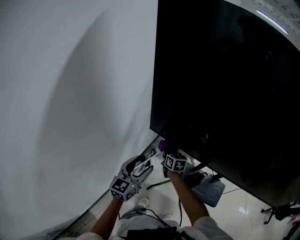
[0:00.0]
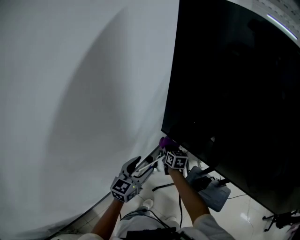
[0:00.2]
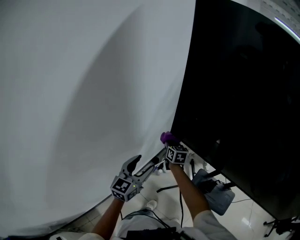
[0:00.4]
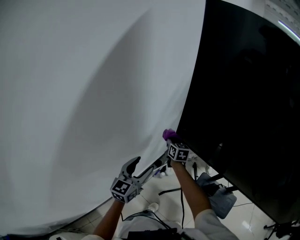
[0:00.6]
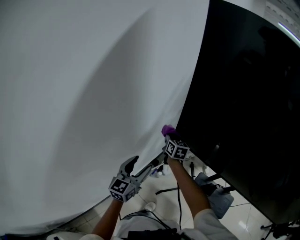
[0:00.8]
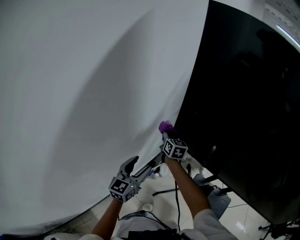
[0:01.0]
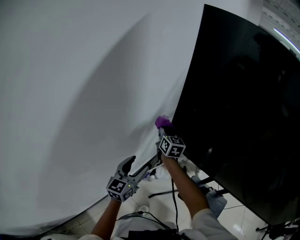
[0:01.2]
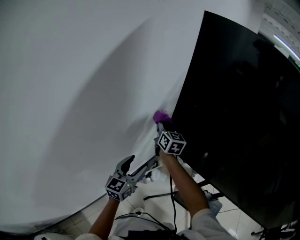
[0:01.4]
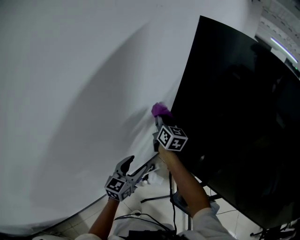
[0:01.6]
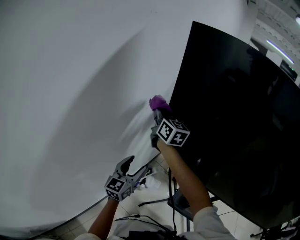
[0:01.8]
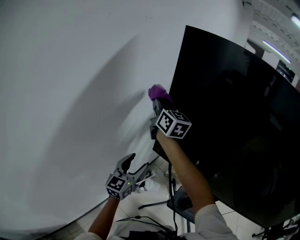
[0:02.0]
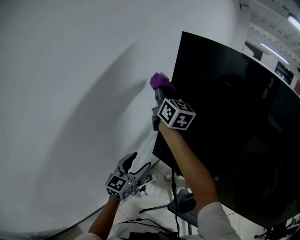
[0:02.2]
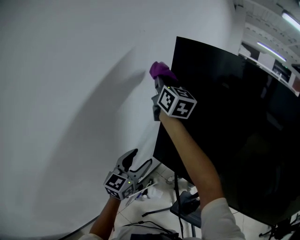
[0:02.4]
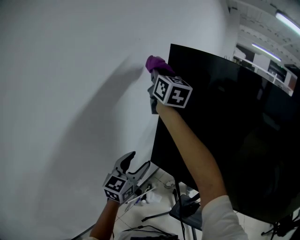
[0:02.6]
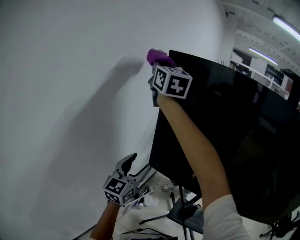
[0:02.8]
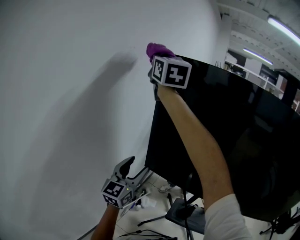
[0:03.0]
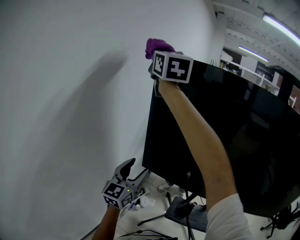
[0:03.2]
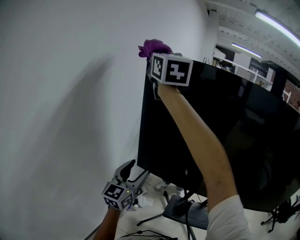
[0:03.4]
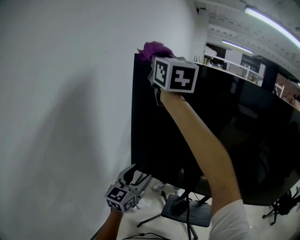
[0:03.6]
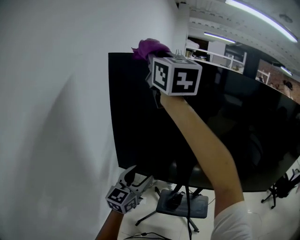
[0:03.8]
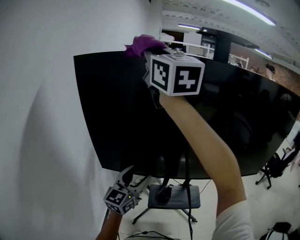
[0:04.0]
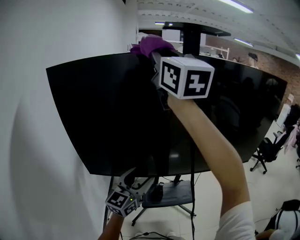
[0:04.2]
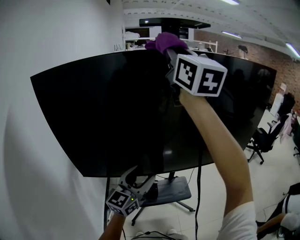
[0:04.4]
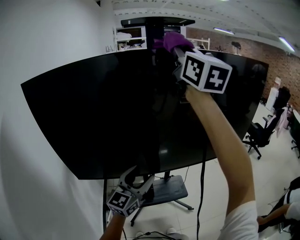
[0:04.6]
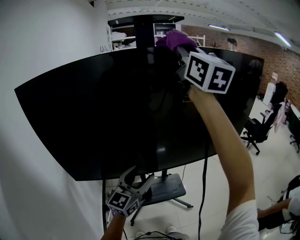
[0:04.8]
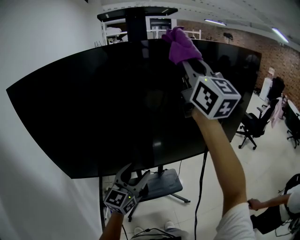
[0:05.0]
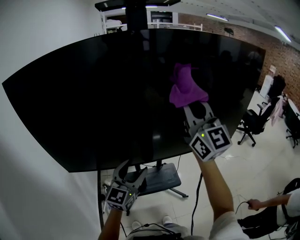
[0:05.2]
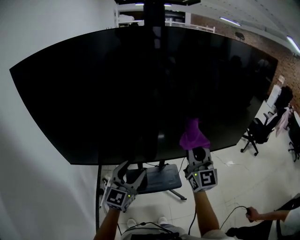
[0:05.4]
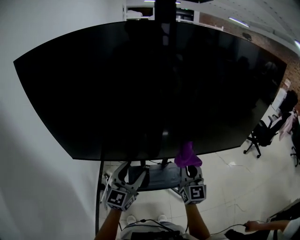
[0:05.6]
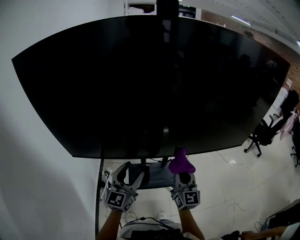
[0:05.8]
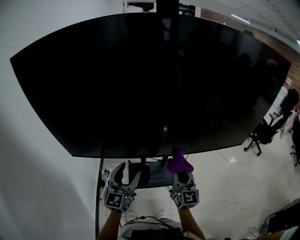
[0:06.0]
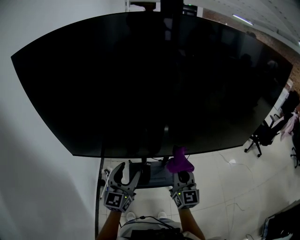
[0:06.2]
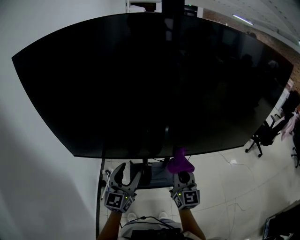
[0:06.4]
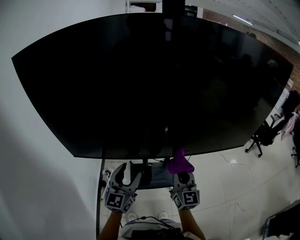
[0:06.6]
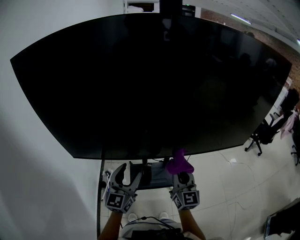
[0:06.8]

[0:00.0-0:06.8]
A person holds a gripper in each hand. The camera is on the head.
0:00.0 to 0:01.4: The left gripper moves to the left and forward, about 20 cm. The right gripper is displaced upward, to the left and forward by roughly 35 cm, and rotates about 20 degrees.
0:01.4 to 0:02.8: The left gripper heads upward, covering approximately 20 cm. Meanwhile the right gripper travels upward by roughly 50 cm, and changes its angle by approximately 30 degrees.
0:02.8 to 0:04.0: The right gripper moves to the right and backward, roughly 30 cm, and turns by about 20 degrees. The left gripper shifts some 20 cm to the right, and rotates approximately 30 degrees.
0:04.0 to 0:05.4: The left gripper heads to the right, covering about 30 cm. Meanwhile the right gripper is displaced to the right and downward by about 70 cm, and turns by roughly 30 degrees.
0:05.4 to 0:06.8: The left gripper heads to the left and downward, covering approximately 10 cm. The right gripper goes approximately 15 cm downward and to the left.

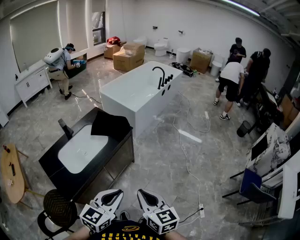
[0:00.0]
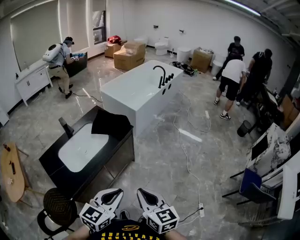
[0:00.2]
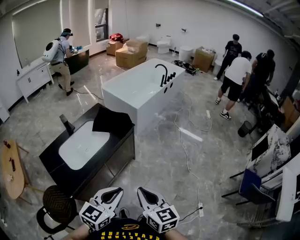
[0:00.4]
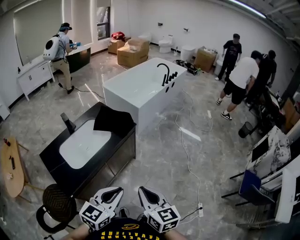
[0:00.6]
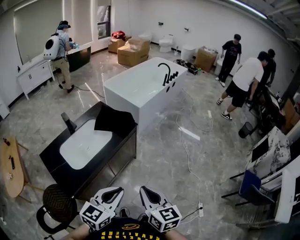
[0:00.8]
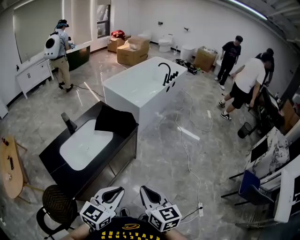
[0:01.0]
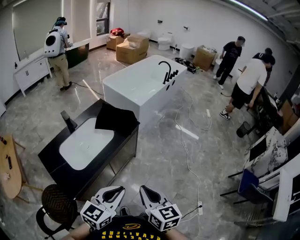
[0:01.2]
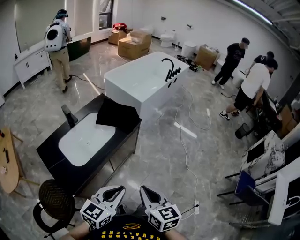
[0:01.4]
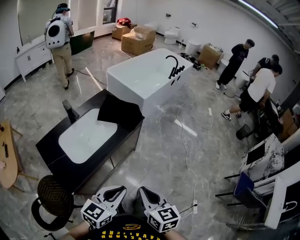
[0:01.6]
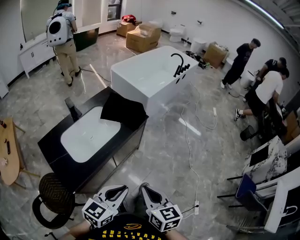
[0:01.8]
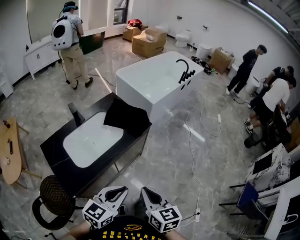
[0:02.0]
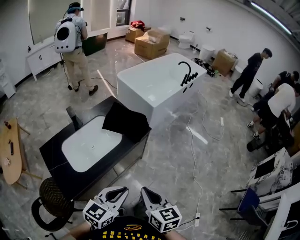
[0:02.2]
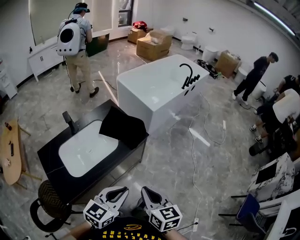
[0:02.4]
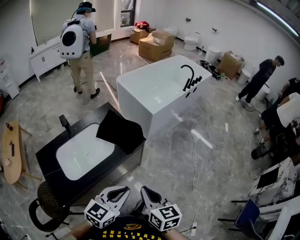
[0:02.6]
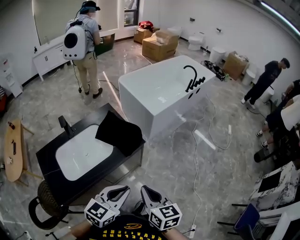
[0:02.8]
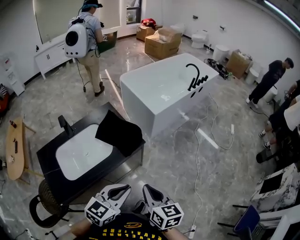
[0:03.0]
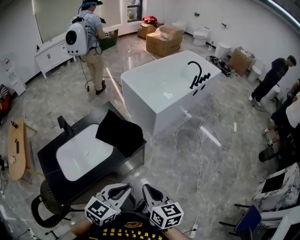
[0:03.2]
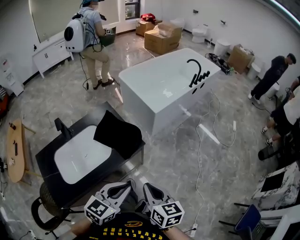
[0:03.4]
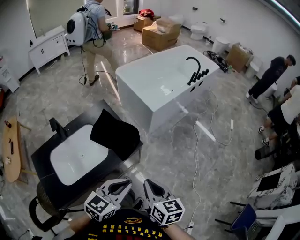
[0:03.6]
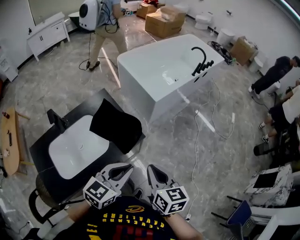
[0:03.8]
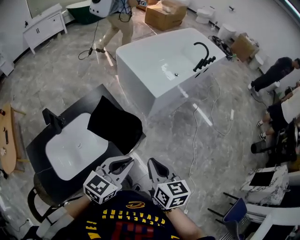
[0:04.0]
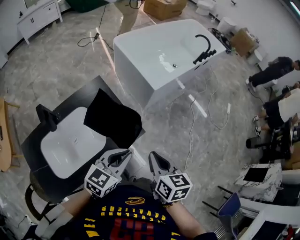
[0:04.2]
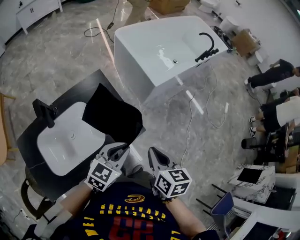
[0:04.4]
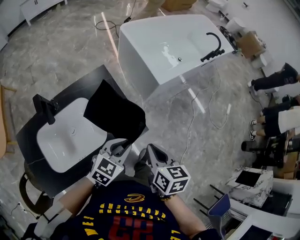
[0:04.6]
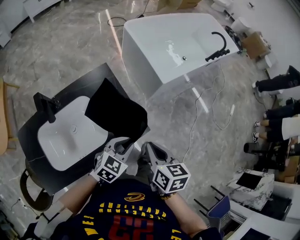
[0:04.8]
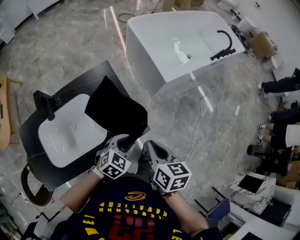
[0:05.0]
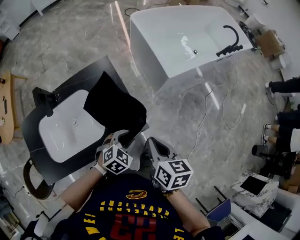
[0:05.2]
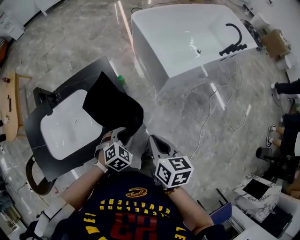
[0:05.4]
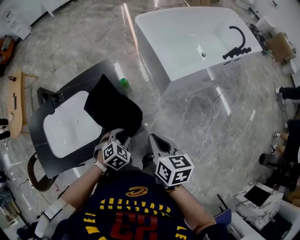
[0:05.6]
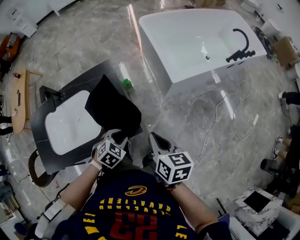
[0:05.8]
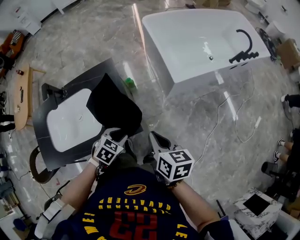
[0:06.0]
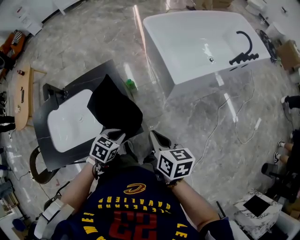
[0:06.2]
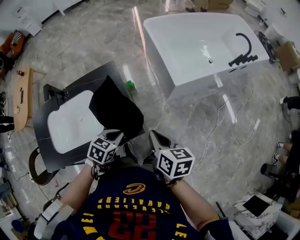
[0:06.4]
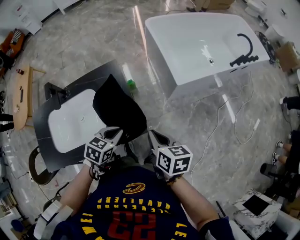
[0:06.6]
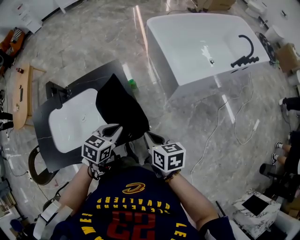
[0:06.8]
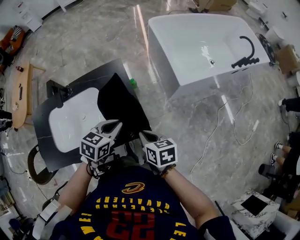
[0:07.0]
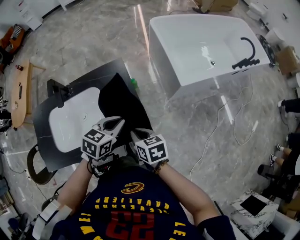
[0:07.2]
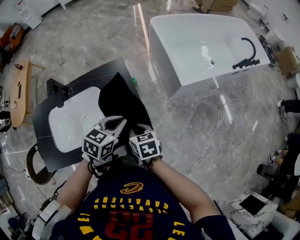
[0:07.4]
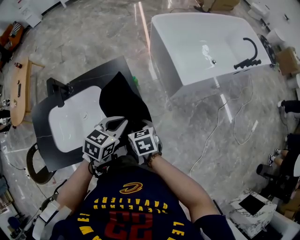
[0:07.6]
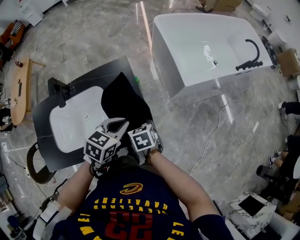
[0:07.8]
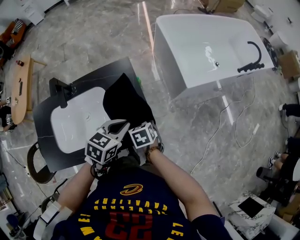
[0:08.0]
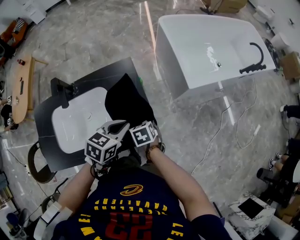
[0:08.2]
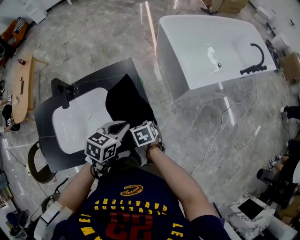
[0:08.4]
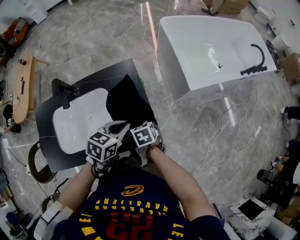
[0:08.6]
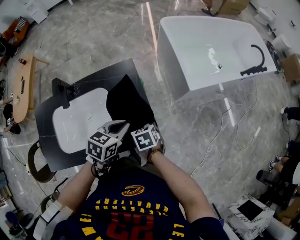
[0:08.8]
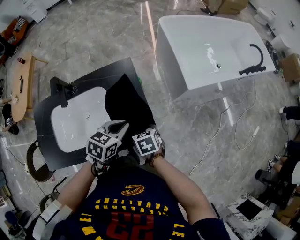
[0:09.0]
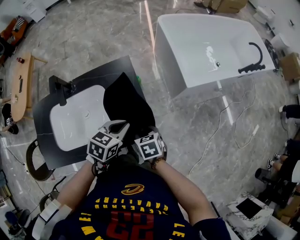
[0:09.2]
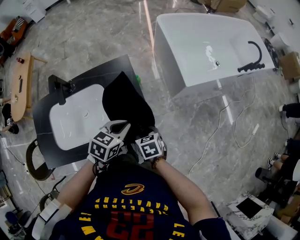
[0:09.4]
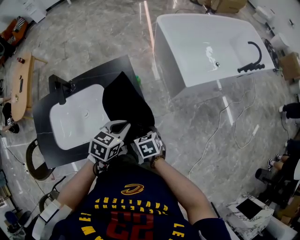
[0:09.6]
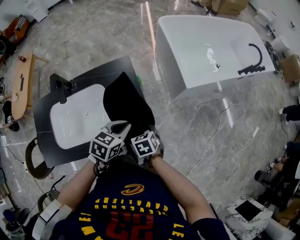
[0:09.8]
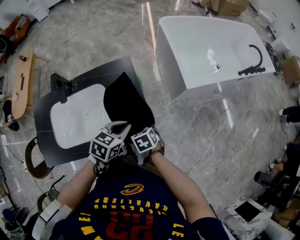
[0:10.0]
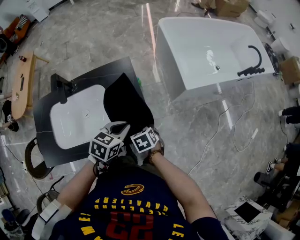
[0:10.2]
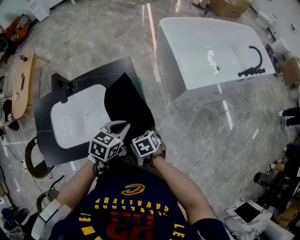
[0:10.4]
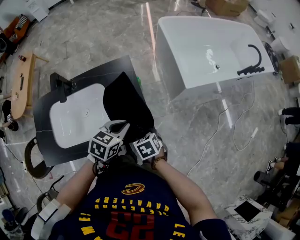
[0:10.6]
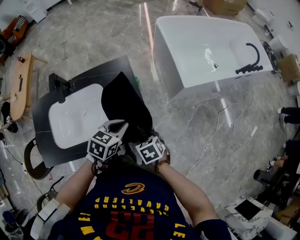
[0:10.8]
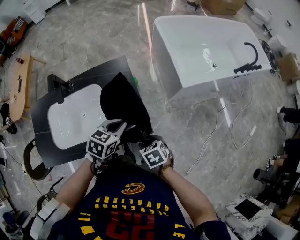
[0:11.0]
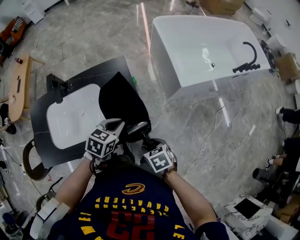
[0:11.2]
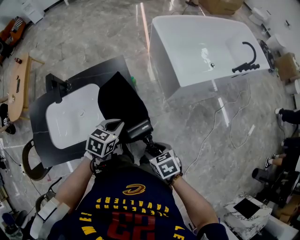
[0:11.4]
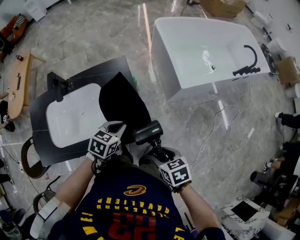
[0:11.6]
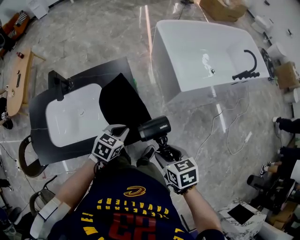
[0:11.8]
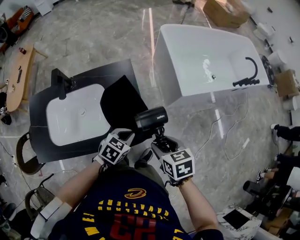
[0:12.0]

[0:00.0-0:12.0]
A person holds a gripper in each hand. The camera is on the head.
0:00.0 to 0:01.6: Both grippers move to the left, roughly 10 cm.
0:01.6 to 0:03.0: Both grippers move forward and to the right, approximately 25 cm.
0:03.0 to 0:04.4: Both grippers move forward, approximately 25 cm.
0:04.4 to 0:06.0: The right gripper moves forward and to the right, roughly 15 cm, and changes its angle by approximately 20 degrees, while the left gripper travels downward by approximately 15 cm, points its fingers approximately 30 degrees further downward, and opens its fingers.
0:06.0 to 0:07.6: The right gripper is displaced to the left and downward by about 20 cm, changes its angle by roughly 30 degrees, and opens. Meanwhile the left gripper moves upward, forward and to the left, some 15 cm, turns by some 20 degrees, and closes.
0:09.0 to 0:10.4: The grippers stay close to where they were, moving slightly.
0:10.4 to 0:12.0: The left gripper moves roughly 5 cm; the right gripper heads upward and to the right, covering some 20 cm.

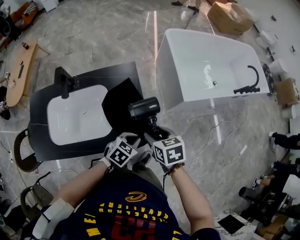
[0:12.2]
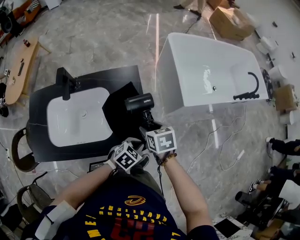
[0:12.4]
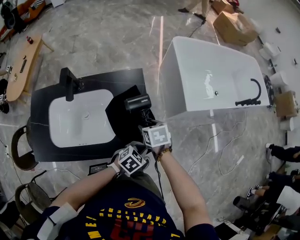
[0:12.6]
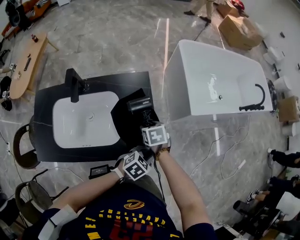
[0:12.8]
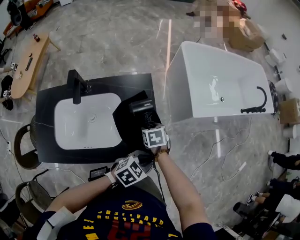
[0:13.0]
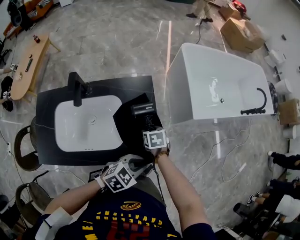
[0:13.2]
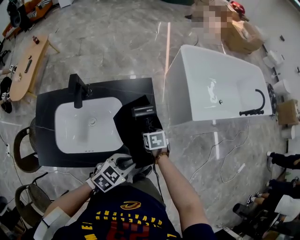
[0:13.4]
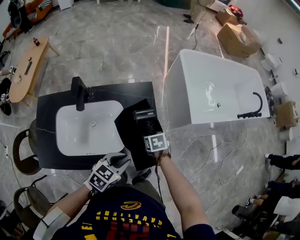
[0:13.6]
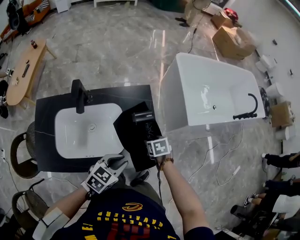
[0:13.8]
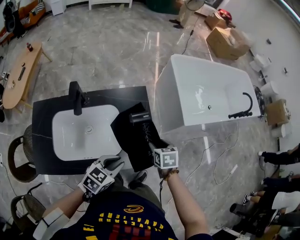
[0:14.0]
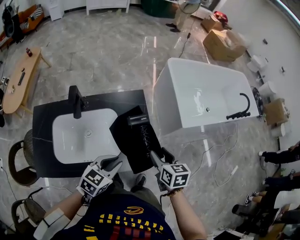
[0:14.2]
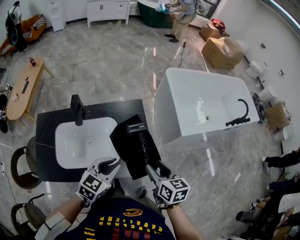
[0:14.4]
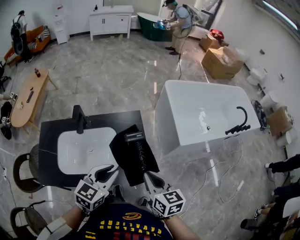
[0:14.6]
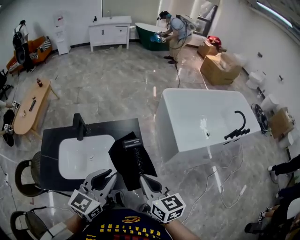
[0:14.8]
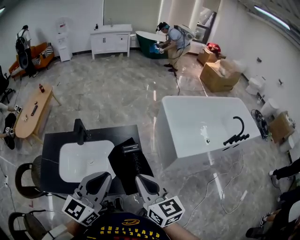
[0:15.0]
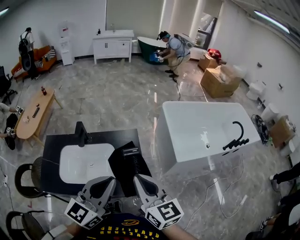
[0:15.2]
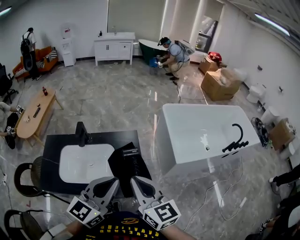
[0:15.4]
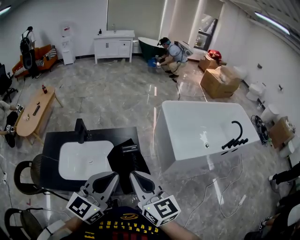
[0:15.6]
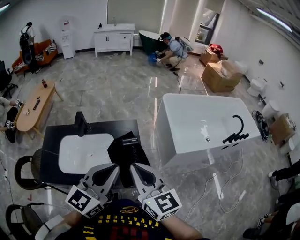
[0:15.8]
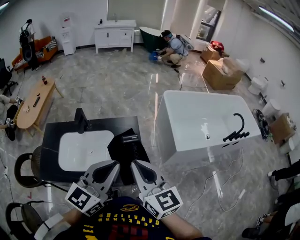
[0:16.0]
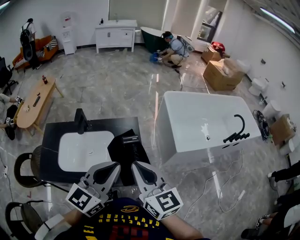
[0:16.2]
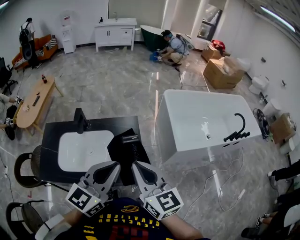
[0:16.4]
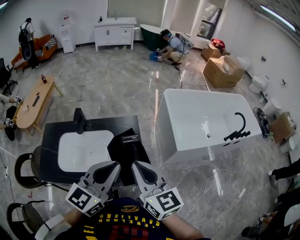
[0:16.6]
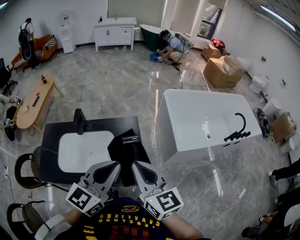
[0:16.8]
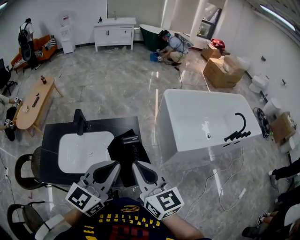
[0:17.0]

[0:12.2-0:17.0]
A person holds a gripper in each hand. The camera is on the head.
0:12.2 to 0:13.8: The left gripper is displaced to the left and upward by roughly 15 cm, while the right gripper travels downward, to the left and forward by some 15 cm.
0:13.8 to 0:15.4: The grippers both shift upward by about 35 cm. The left gripper tilts its fingers roughly 40 degrees upward; the right gripper points its fingers roughly 60 degrees further upward, and closes.
0:15.4 to 0:17.0: The grippers make only small movements.
